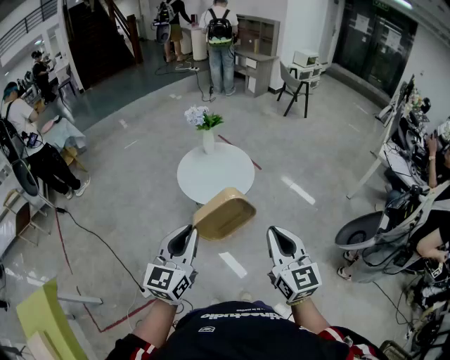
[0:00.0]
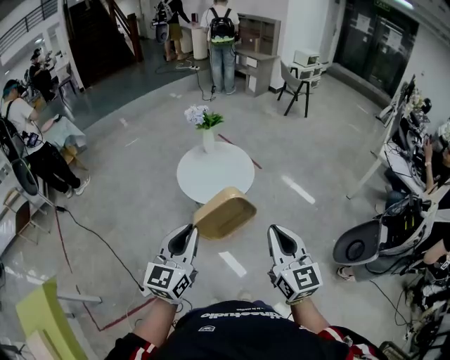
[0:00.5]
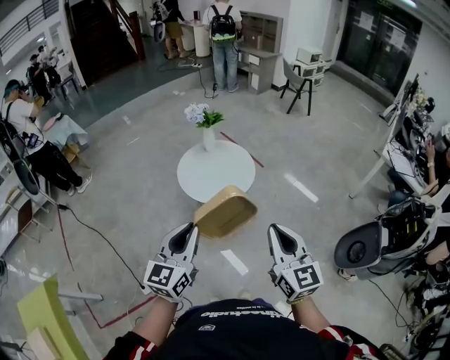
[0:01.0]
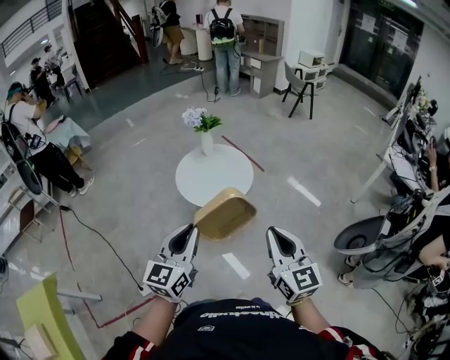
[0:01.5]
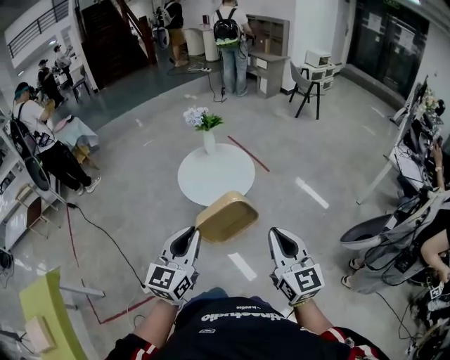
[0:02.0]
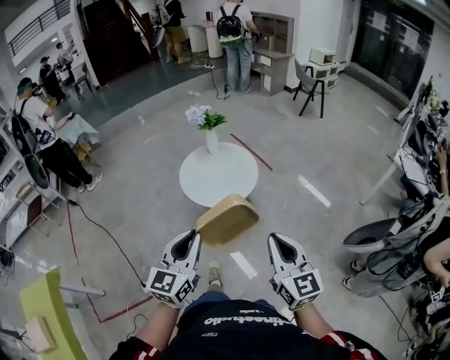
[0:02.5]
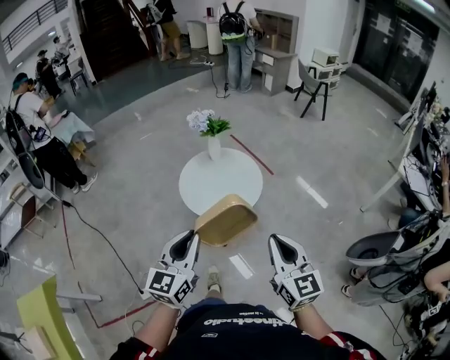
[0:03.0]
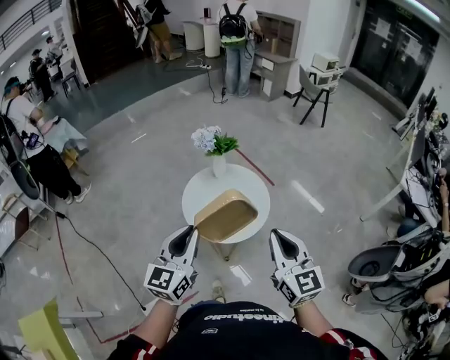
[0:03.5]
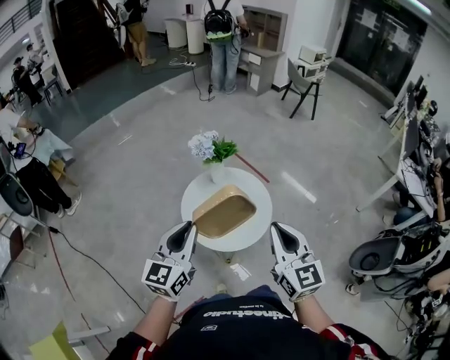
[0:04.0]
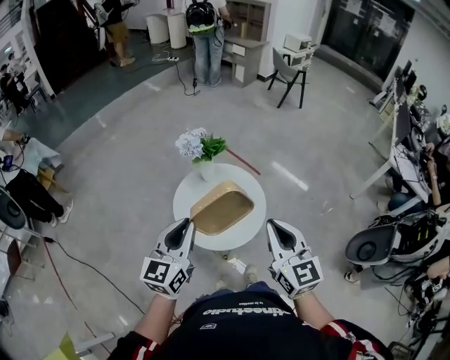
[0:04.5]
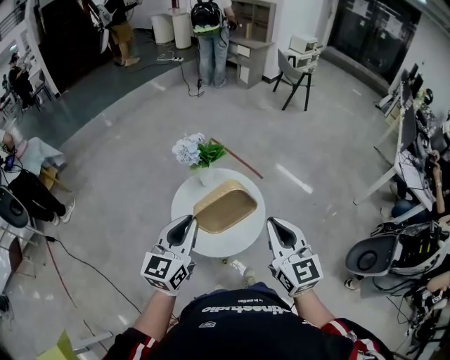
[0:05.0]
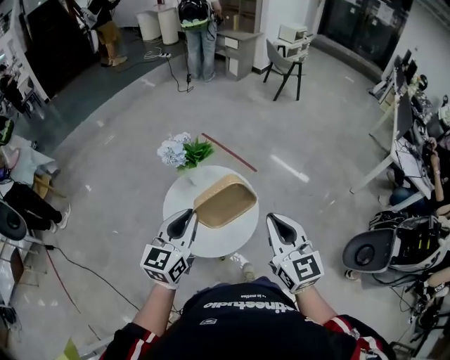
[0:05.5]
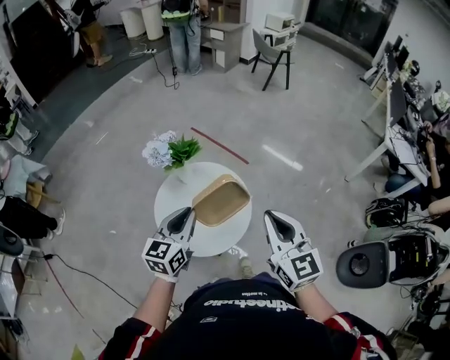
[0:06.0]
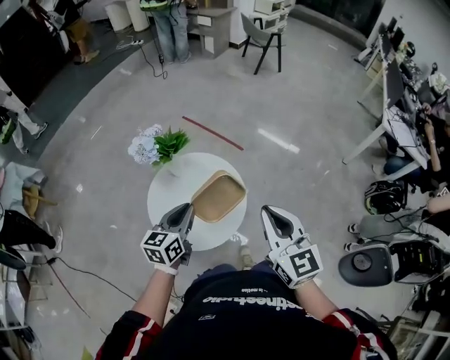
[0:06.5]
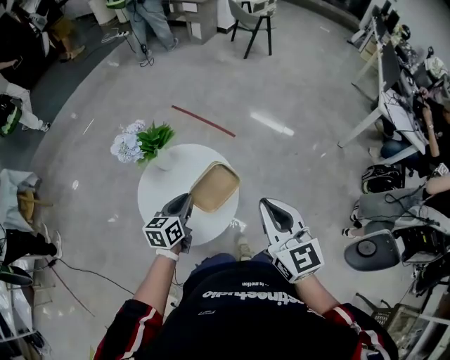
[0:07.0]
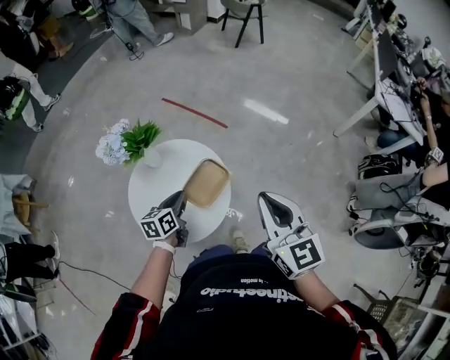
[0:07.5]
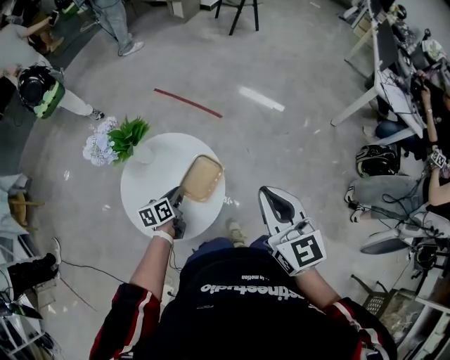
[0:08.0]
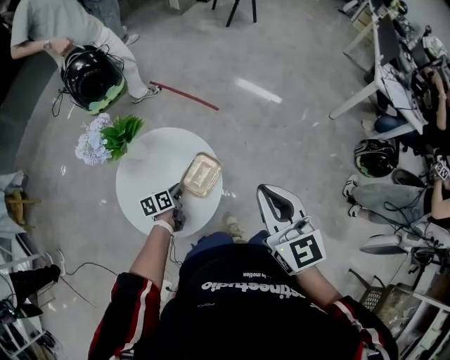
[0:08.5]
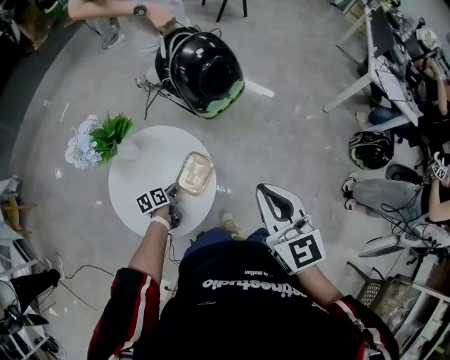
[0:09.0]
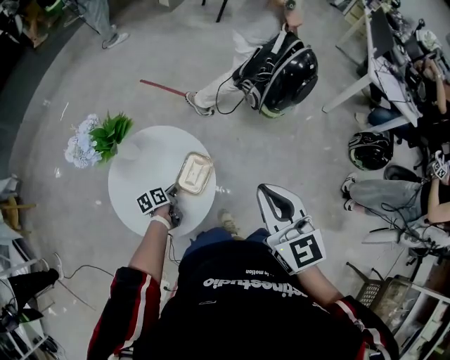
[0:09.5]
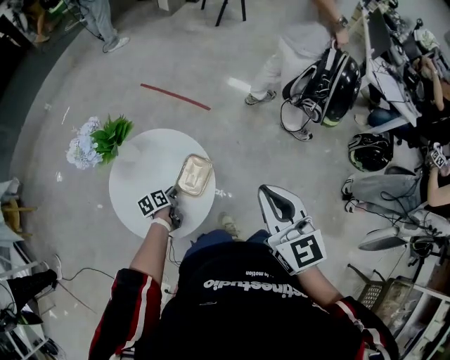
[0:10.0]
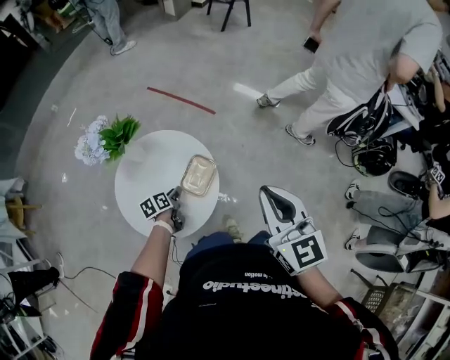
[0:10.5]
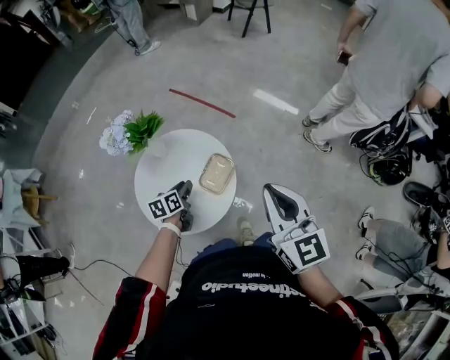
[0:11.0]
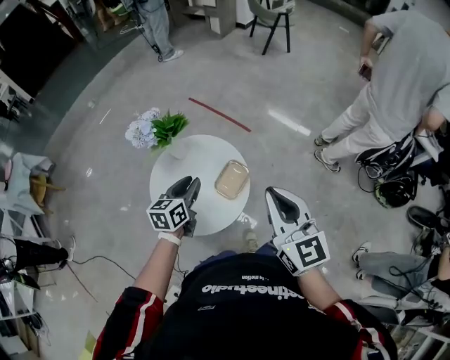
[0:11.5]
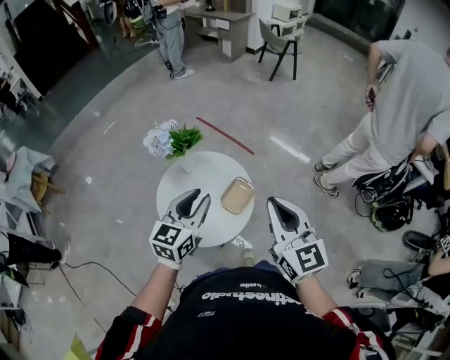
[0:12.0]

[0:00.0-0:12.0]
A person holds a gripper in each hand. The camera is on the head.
0:00.0 to 0:02.0: The grippers both shift to the right by roughly 10 cm.
0:02.0 to 0:04.0: Both grippers move forward and to the left, some 40 cm.
0:04.0 to 0:06.0: The left gripper travels forward, to the right and downward by roughly 20 cm. Meanwhile the right gripper moves forward and to the right, roughly 15 cm.
0:06.0 to 0:08.0: The right gripper is displaced to the right, forward and downward by about 15 cm; the left gripper shifts approximately 30 cm downward and forward, and changes its angle by approximately 40 degrees.
0:08.0 to 0:10.0: The left gripper moves downward, approximately 10 cm.
0:10.0 to 0:12.0: The left gripper travels upward by roughly 40 cm, and twists some 50 degrees clockwise, seen from behind, while the right gripper is displaced upward, to the left and backward by roughly 15 cm.

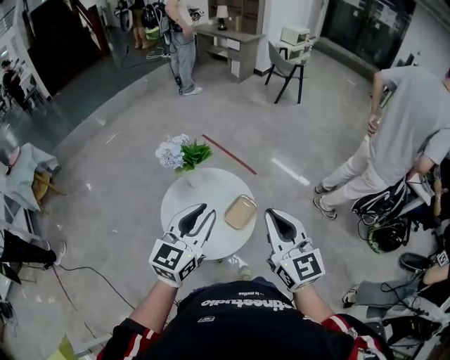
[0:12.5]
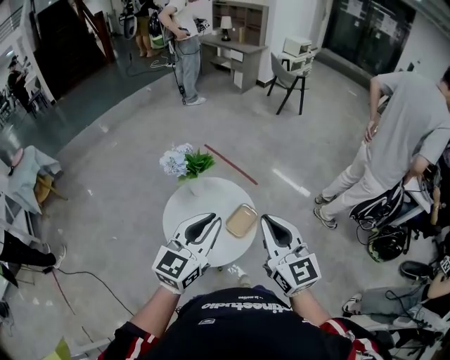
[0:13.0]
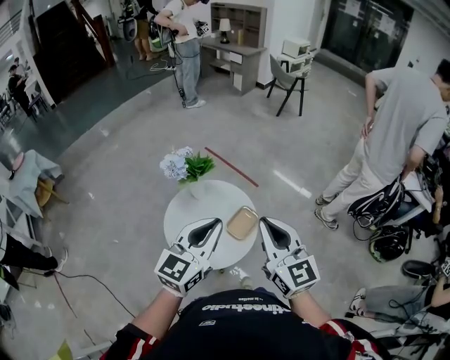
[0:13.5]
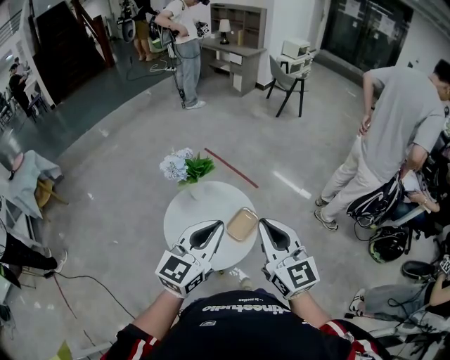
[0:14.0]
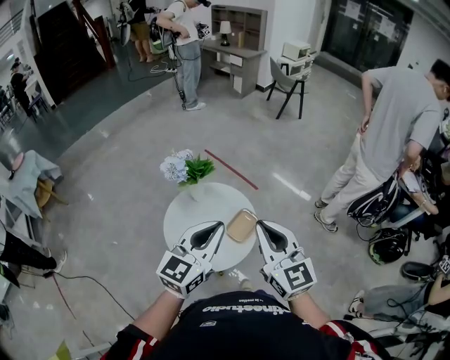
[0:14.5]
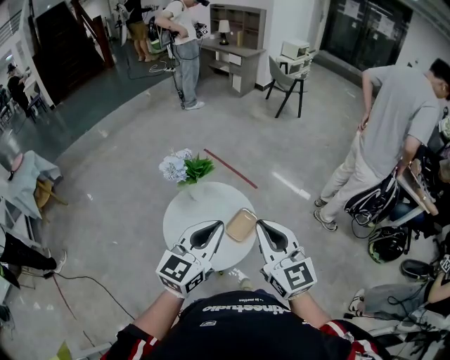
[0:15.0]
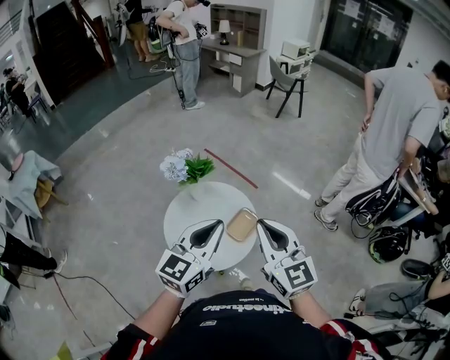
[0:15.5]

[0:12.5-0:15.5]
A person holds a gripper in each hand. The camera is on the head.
0:12.5 to 0:14.0: The left gripper closes its fingers.
0:14.0 to 0:15.5: Neither gripper changes place.

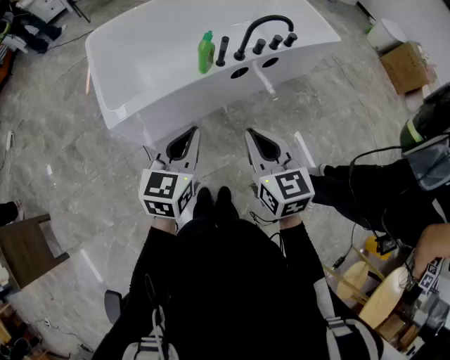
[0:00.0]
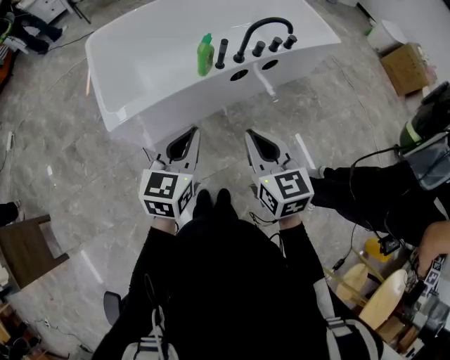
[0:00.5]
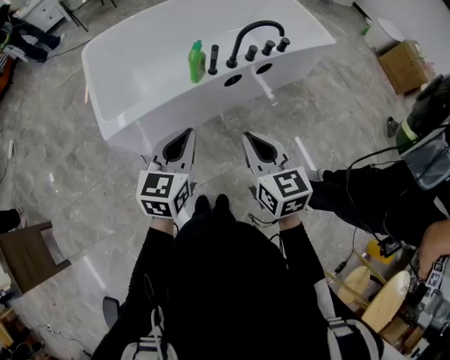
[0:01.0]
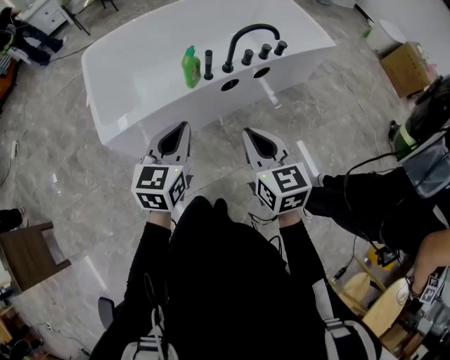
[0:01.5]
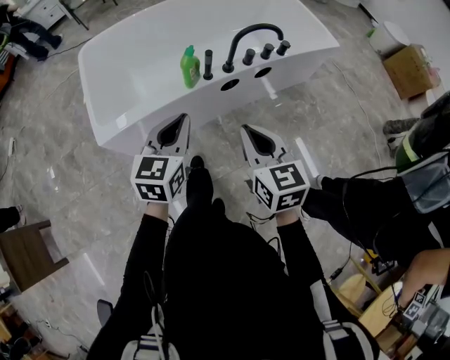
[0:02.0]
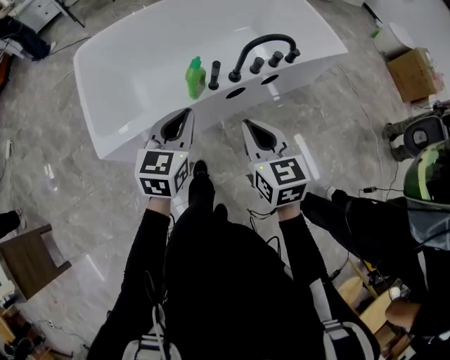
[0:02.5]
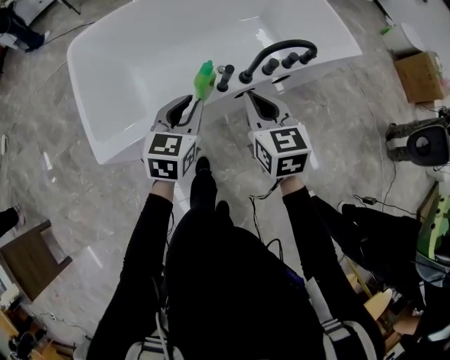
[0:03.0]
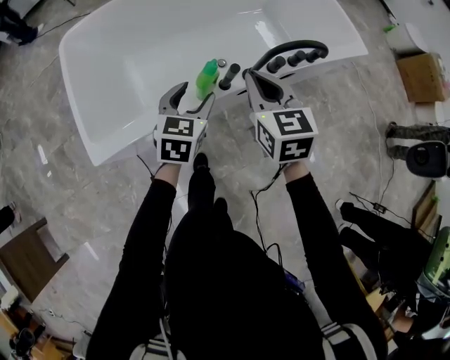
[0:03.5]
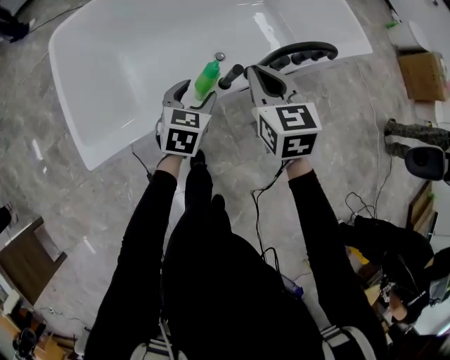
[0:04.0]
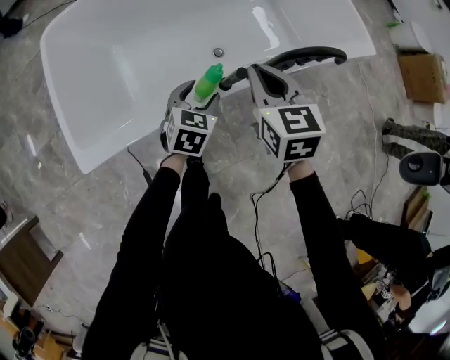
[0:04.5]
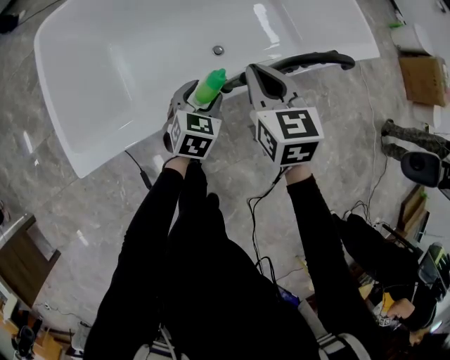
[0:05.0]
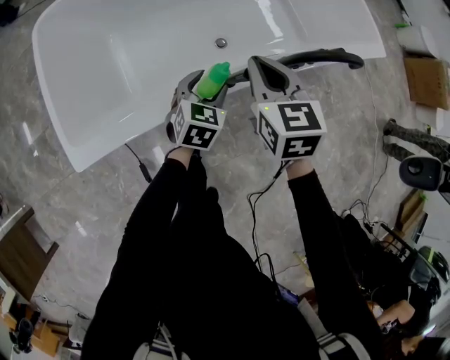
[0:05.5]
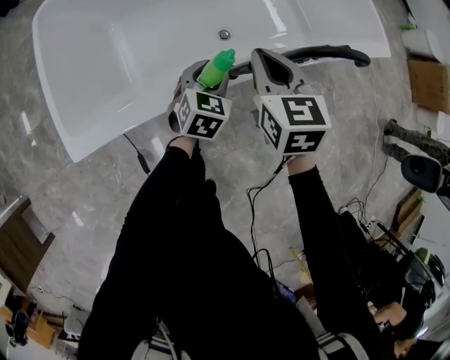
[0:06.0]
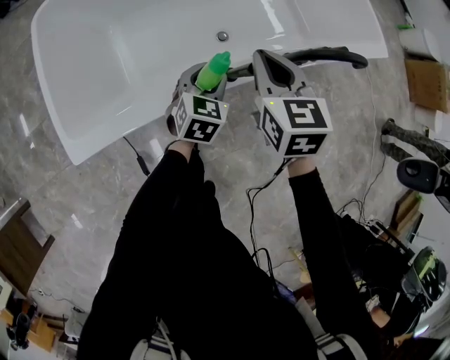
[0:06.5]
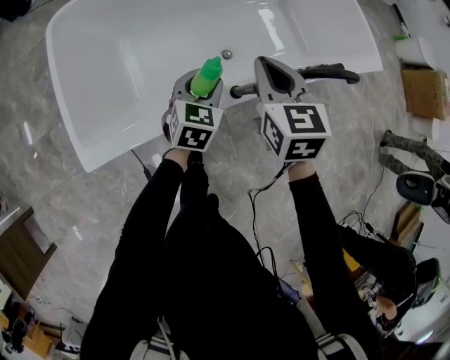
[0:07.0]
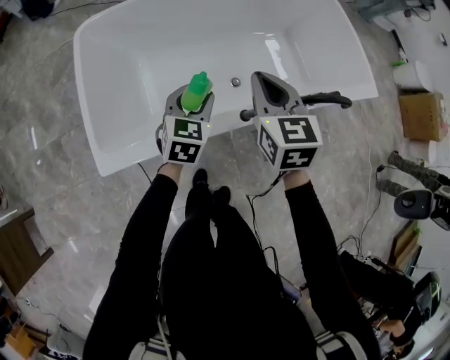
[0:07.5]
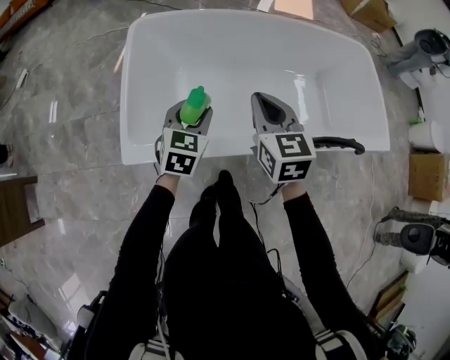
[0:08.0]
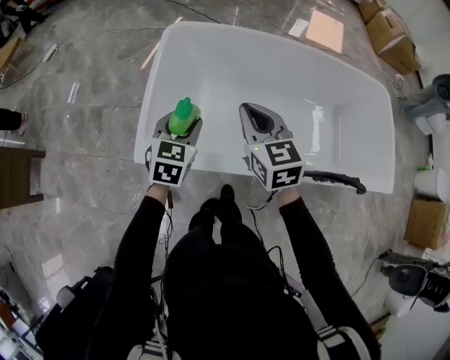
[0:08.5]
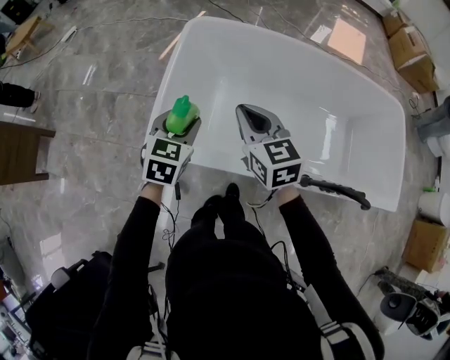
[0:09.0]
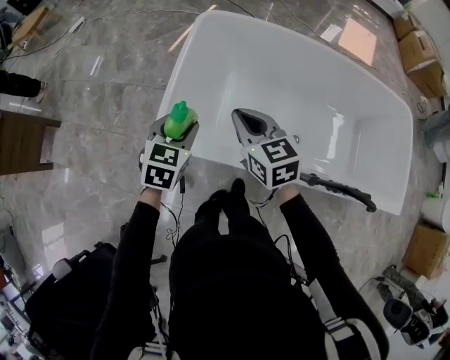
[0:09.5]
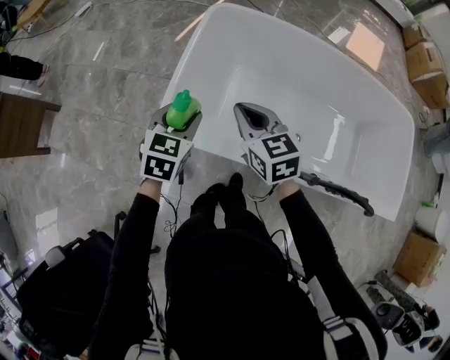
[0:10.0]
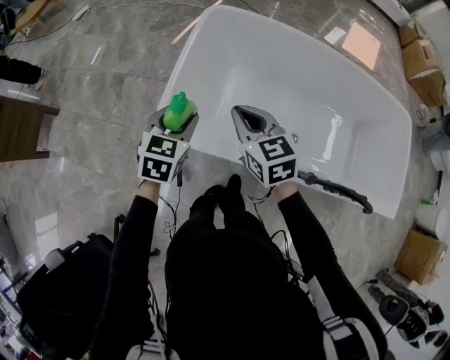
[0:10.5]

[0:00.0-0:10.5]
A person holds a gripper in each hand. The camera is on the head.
0:00.0 to 0:02.0: The left gripper is displaced forward by approximately 10 cm, while the right gripper travels forward and to the right by some 10 cm.
0:02.0 to 0:04.0: The right gripper travels forward by approximately 30 cm; the left gripper heads forward and downward, covering approximately 30 cm, and opens.
0:04.0 to 0:06.5: The left gripper travels downward by roughly 5 cm. Meanwhile the right gripper changes place by roughly 5 cm.
0:06.5 to 0:08.5: The left gripper changes place by roughly 35 cm, and rotates approximately 30 degrees, while the right gripper ends up about 25 cm from where it was, and changes its angle by about 40 degrees.
0:08.5 to 0:10.5: The two grippers go about 10 cm to the left.

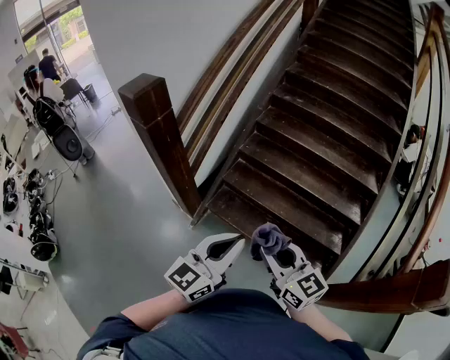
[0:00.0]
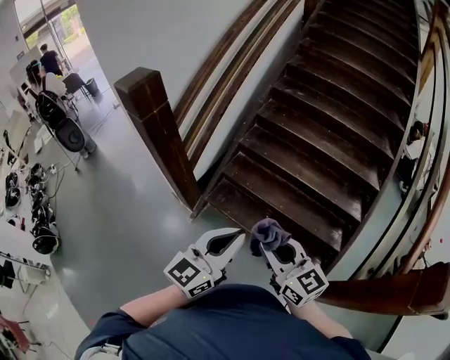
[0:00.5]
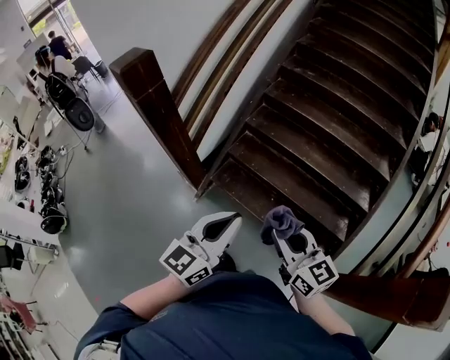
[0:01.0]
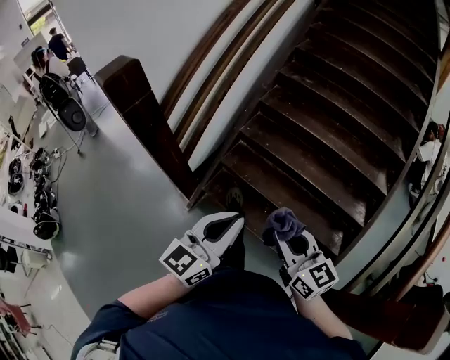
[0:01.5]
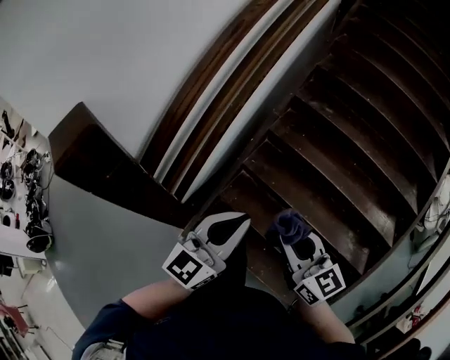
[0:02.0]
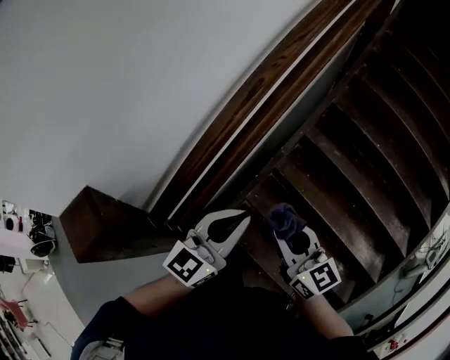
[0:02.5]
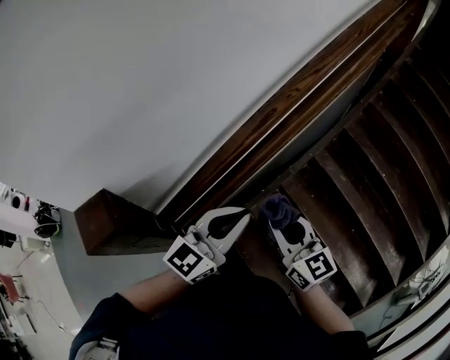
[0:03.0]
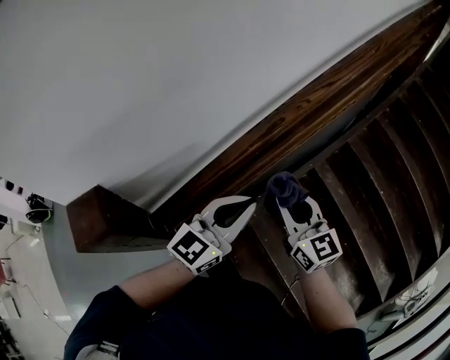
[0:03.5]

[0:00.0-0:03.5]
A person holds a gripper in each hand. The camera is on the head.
0:00.0 to 0:02.0: Both grippers are carried forward, about 40 cm.
0:02.0 to 0:03.5: The two grippers go roughly 40 cm forward and upward.
